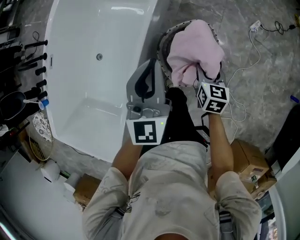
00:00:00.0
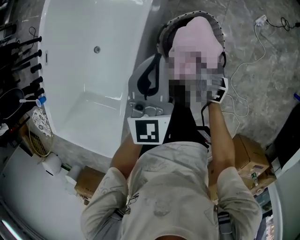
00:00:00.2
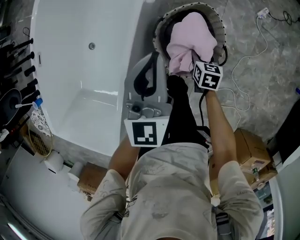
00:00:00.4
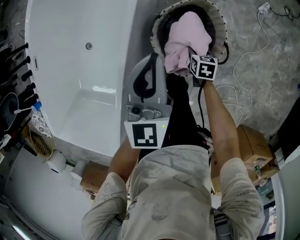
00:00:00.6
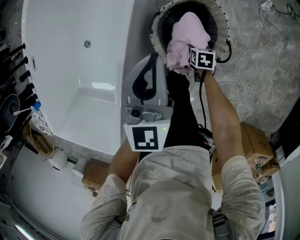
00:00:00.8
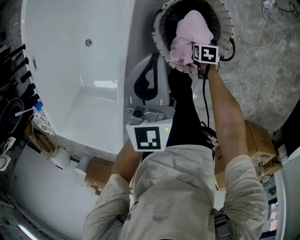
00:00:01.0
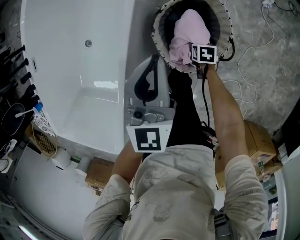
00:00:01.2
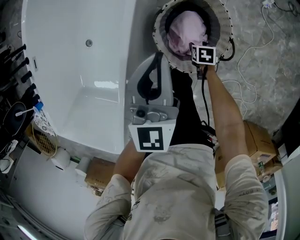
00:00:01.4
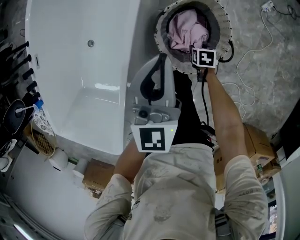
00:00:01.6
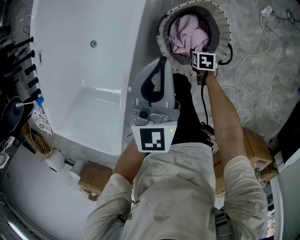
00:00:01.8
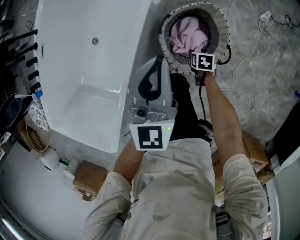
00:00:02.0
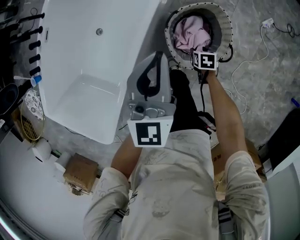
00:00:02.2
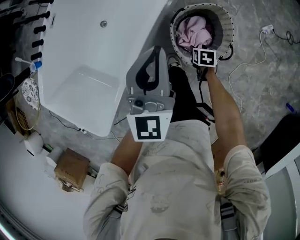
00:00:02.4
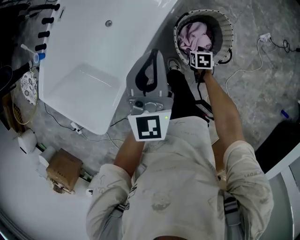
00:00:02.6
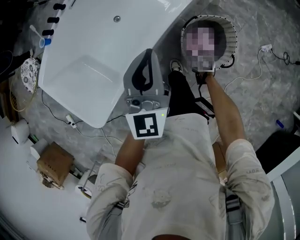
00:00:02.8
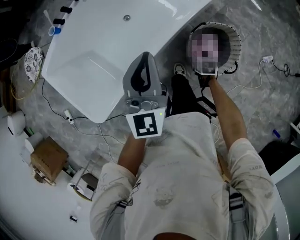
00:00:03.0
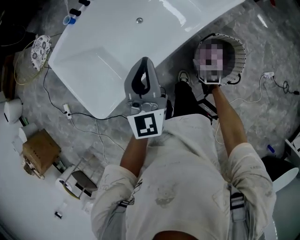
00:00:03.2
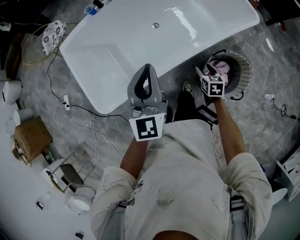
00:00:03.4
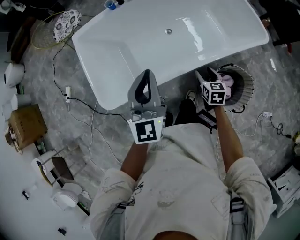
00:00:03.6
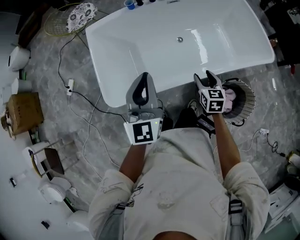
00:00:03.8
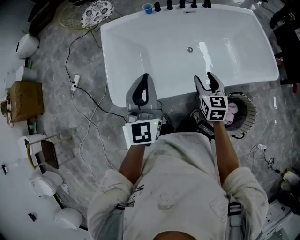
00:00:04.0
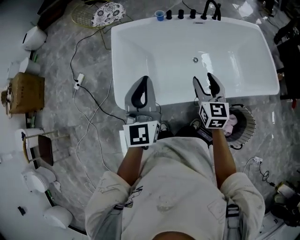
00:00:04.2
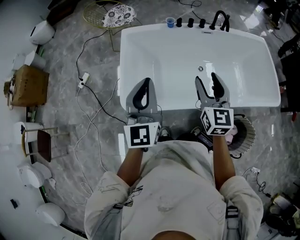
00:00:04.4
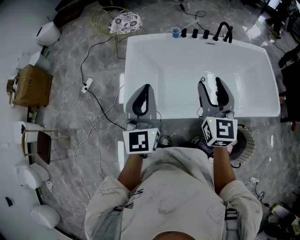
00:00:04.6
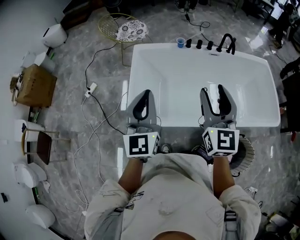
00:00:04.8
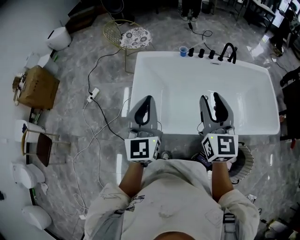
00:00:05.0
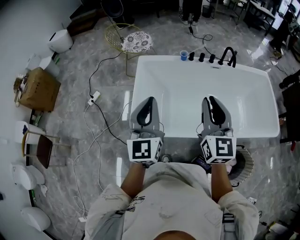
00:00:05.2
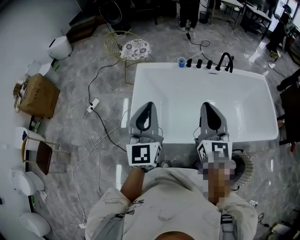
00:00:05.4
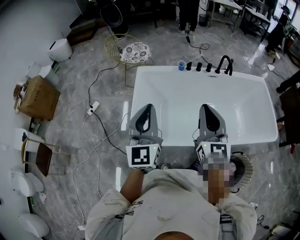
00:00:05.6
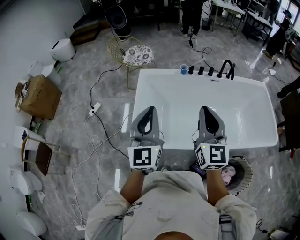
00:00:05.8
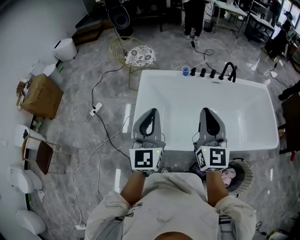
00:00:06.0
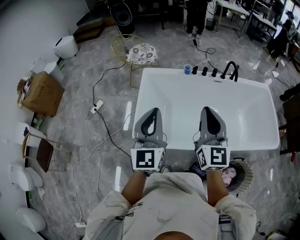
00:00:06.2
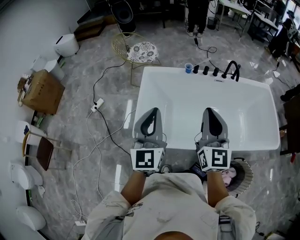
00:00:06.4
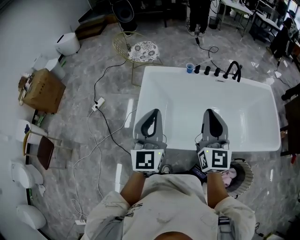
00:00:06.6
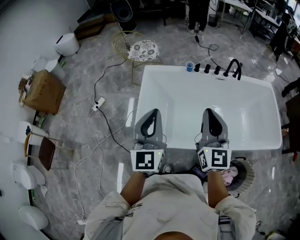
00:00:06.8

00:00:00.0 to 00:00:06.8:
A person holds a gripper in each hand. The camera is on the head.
00:00:00.0 to 00:00:01.4: The right gripper goes some 30 cm downward, and tips its fingers downward by roughly 30 degrees. The left gripper moves downward, roughly 10 cm.
00:00:01.4 to 00:00:02.8: The left gripper shifts by approximately 30 cm, and rotates some 30 degrees. Meanwhile the right gripper is displaced upward by roughly 15 cm, and turns by roughly 30 degrees.
00:00:02.8 to 00:00:04.0: The right gripper moves roughly 50 cm, and tips its fingers upward by some 40 degrees. The left gripper changes place by roughly 40 cm, and swivels approximately 40 degrees.
00:00:04.0 to 00:00:05.4: The left gripper goes approximately 15 cm to the left and upward; the right gripper goes about 30 cm upward and to the left, swivels about 30 degrees, and closes.
00:00:05.4 to 00:00:06.8: There are only small adjustments of the grippers.

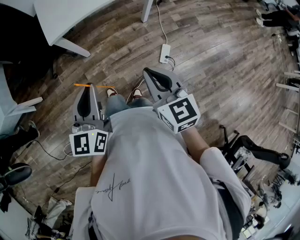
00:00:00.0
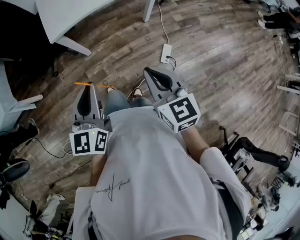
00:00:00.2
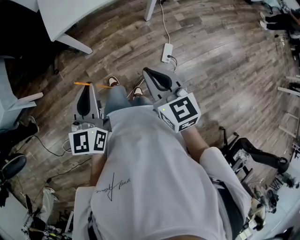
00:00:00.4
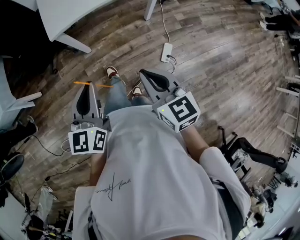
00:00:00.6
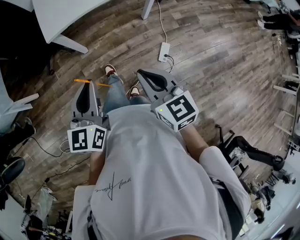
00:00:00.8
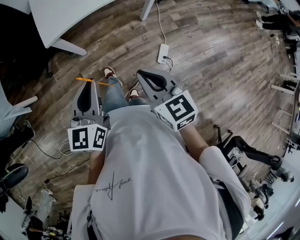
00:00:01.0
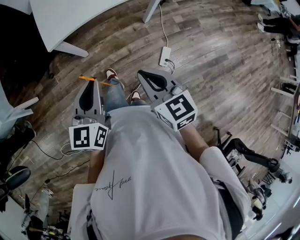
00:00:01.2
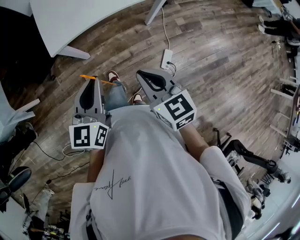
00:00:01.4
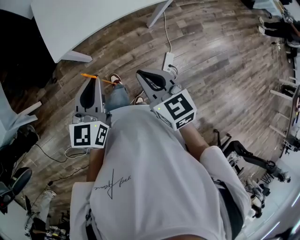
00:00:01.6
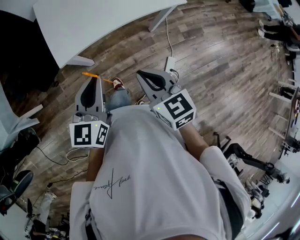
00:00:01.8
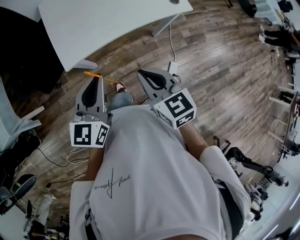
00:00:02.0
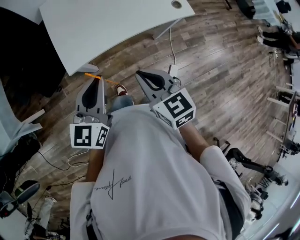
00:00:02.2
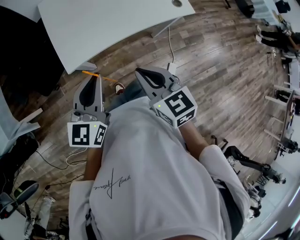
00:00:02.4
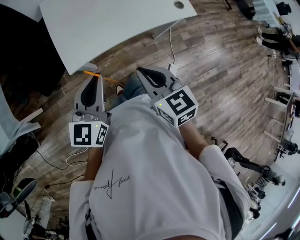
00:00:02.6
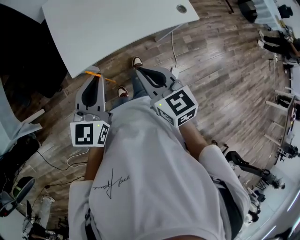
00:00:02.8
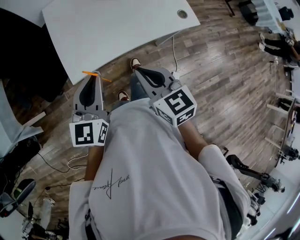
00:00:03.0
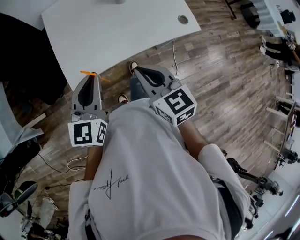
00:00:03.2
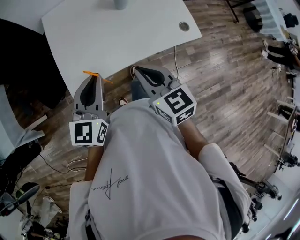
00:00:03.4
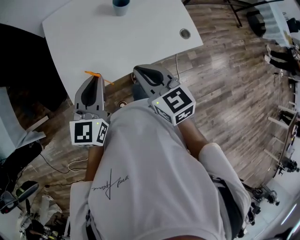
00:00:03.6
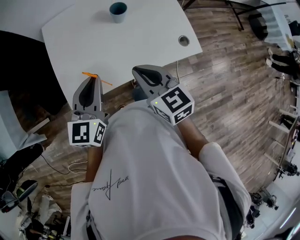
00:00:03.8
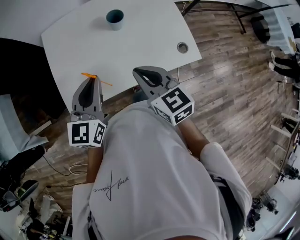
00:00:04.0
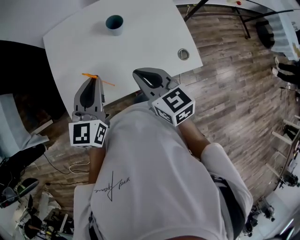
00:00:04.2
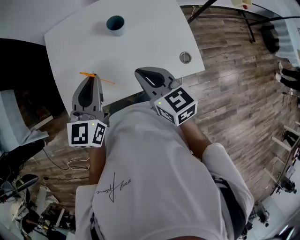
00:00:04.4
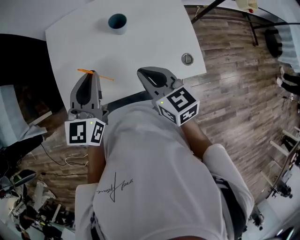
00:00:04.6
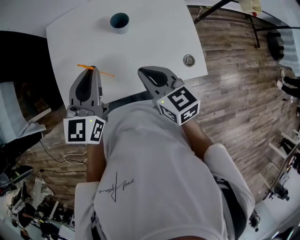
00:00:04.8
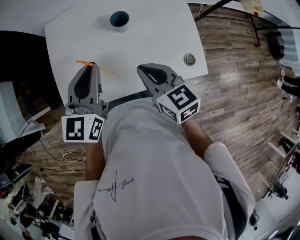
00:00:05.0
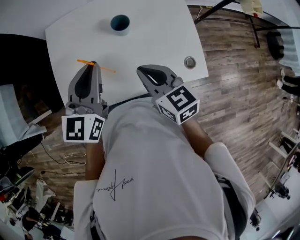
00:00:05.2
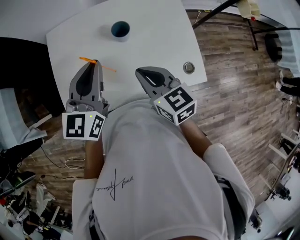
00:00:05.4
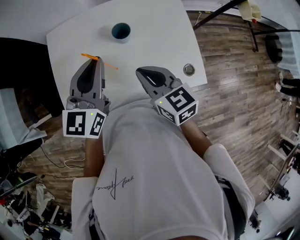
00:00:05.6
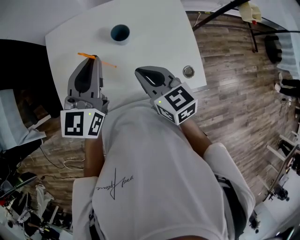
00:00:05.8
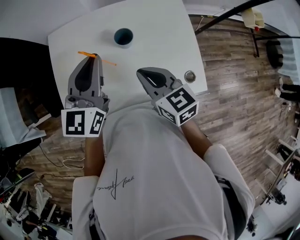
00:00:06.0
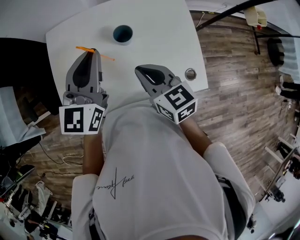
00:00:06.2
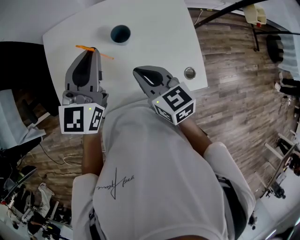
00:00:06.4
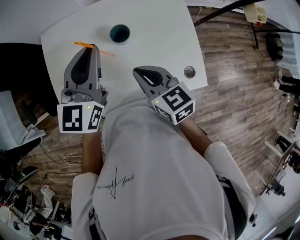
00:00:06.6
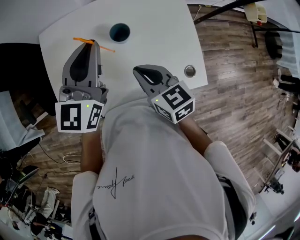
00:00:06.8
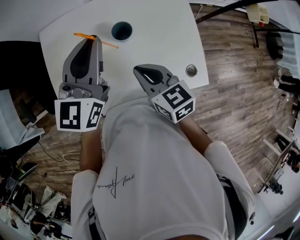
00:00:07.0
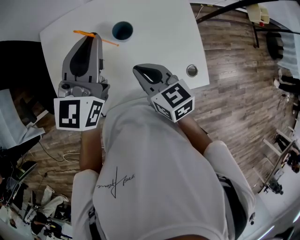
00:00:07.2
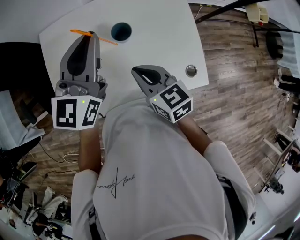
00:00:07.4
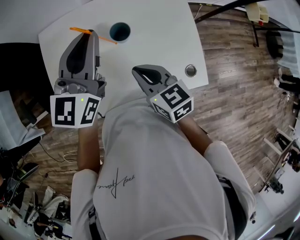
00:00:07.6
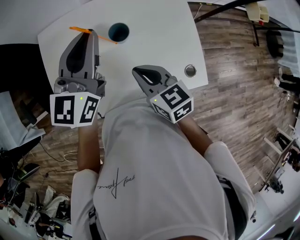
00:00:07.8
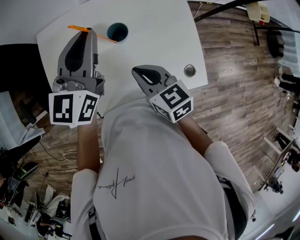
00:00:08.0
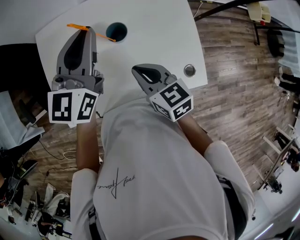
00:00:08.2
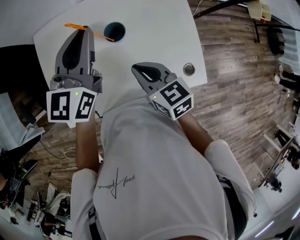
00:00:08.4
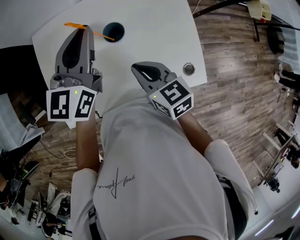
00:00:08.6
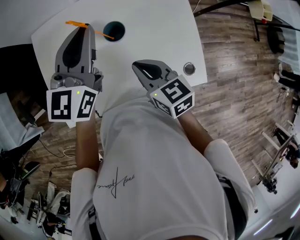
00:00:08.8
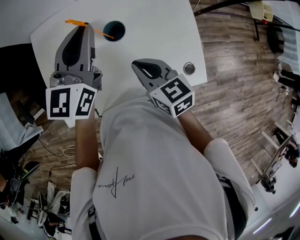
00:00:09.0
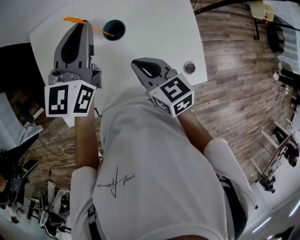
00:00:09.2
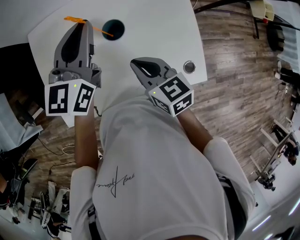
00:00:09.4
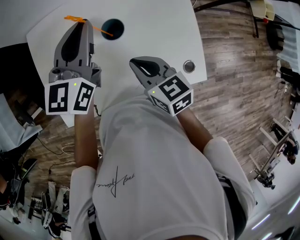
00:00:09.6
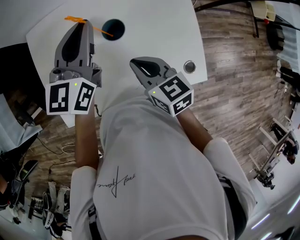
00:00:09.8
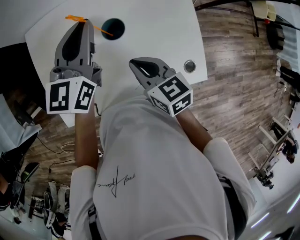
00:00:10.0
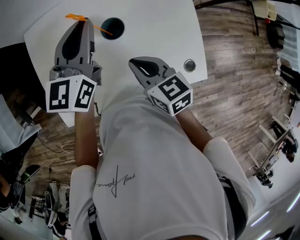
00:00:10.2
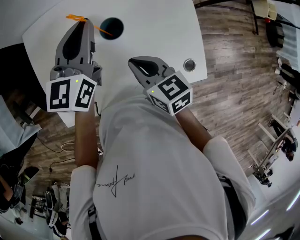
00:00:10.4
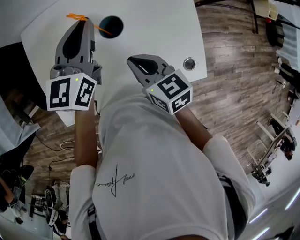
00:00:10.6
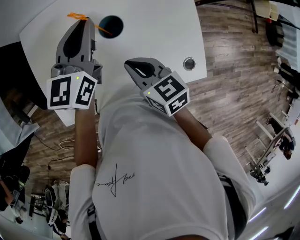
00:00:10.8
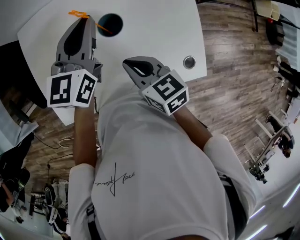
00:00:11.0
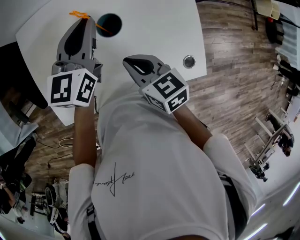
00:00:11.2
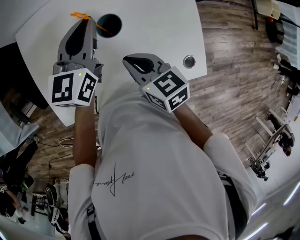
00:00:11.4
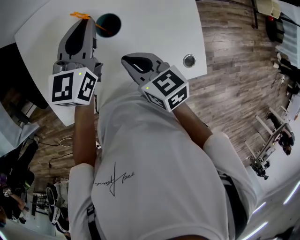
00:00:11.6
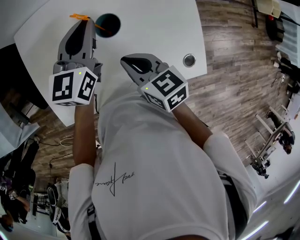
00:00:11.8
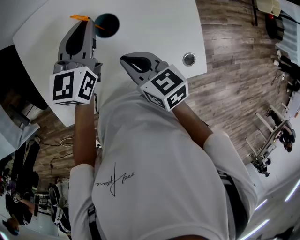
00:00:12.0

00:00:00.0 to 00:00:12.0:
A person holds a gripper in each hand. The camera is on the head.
00:00:00.0 to 00:00:01.6: The two grippers go some 20 cm forward.
00:00:01.6 to 00:00:03.0: The two grippers go some 15 cm forward and to the left.
00:00:03.0 to 00:00:04.4: The two grippers go about 25 cm forward and to the right.
00:00:04.4 to 00:00:06.0: Both grippers travel together forward, some 10 cm.
00:00:06.0 to 00:00:07.6: The left gripper shifts roughly 5 cm forward.
00:00:07.6 to 00:00:09.0: The left gripper shifts by about 5 cm.
00:00:09.0 to 00:00:10.4: The left gripper is displaced downward by some 5 cm.
00:00:10.4 to 00:00:12.0: The left gripper is displaced downward by about 5 cm.

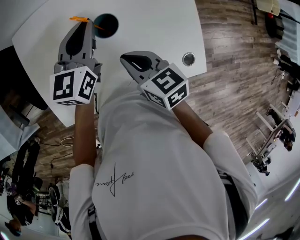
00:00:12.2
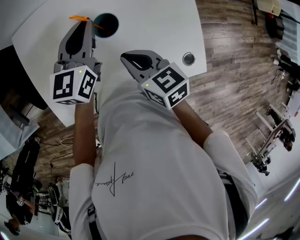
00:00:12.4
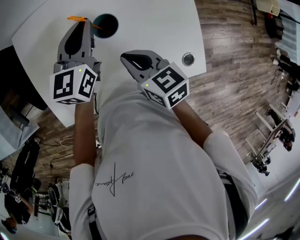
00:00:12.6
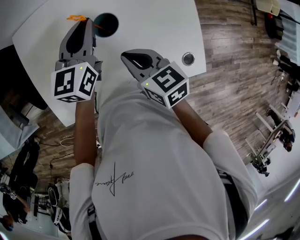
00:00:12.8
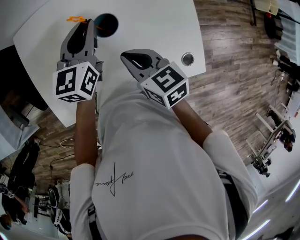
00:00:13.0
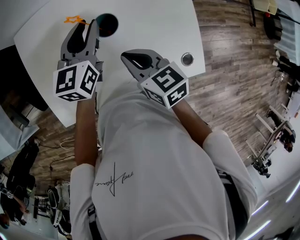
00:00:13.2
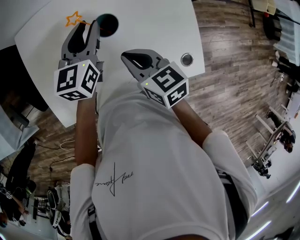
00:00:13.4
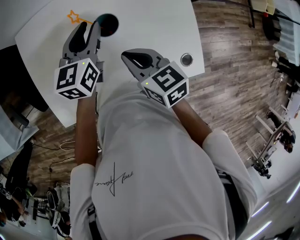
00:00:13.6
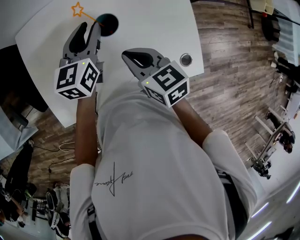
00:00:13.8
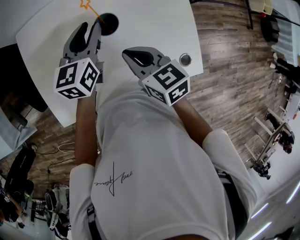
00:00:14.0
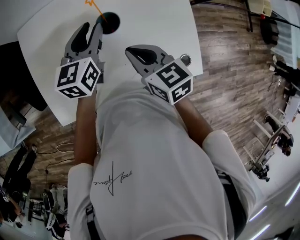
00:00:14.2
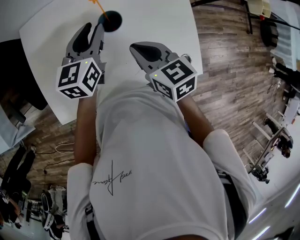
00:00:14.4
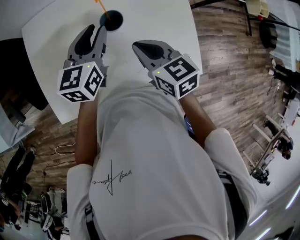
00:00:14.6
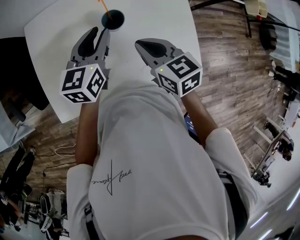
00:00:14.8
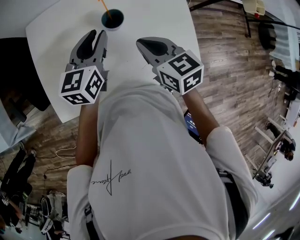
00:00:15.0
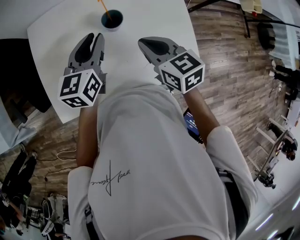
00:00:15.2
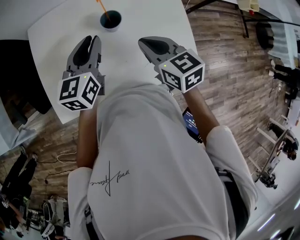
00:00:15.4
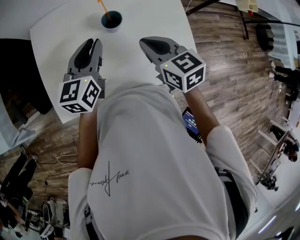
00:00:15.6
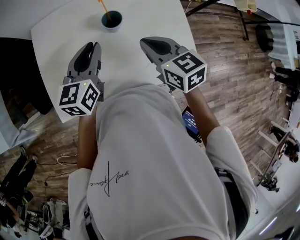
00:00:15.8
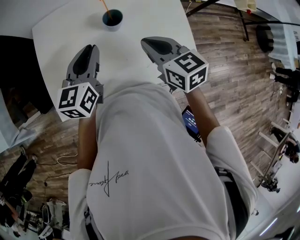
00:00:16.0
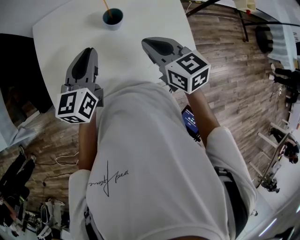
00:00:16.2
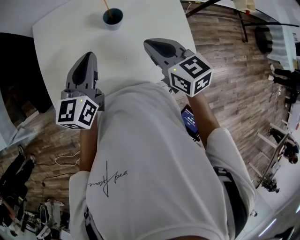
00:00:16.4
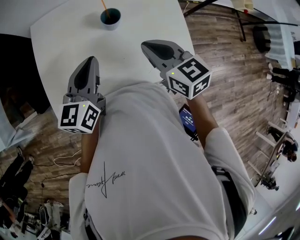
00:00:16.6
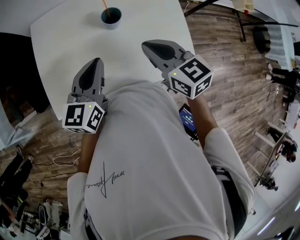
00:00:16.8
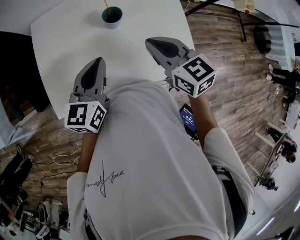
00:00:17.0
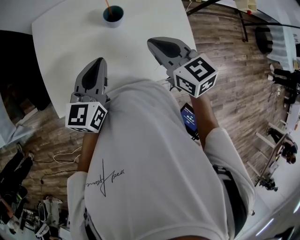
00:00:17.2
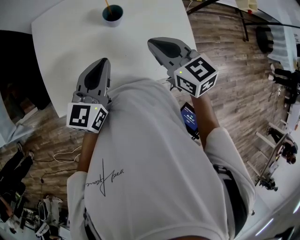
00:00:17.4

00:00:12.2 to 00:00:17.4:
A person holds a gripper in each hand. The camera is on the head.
00:00:12.2 to 00:00:14.0: The left gripper opens its fingers.
00:00:14.0 to 00:00:15.6: The left gripper heads backward and upward, covering about 10 cm. The right gripper moves upward, about 5 cm.
00:00:15.6 to 00:00:17.4: The left gripper goes approximately 10 cm backward.
